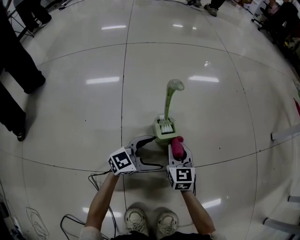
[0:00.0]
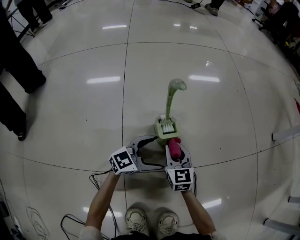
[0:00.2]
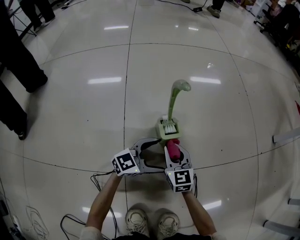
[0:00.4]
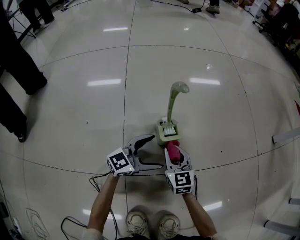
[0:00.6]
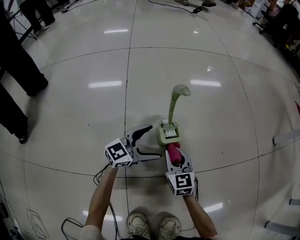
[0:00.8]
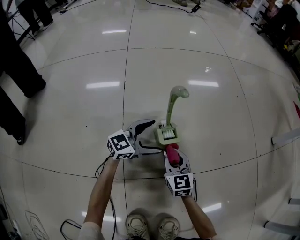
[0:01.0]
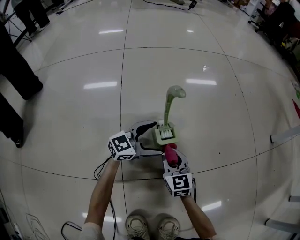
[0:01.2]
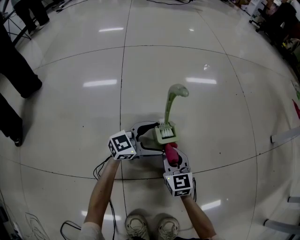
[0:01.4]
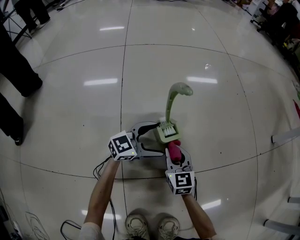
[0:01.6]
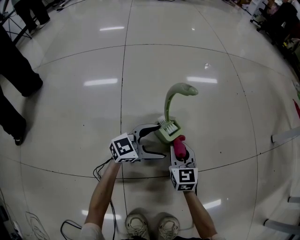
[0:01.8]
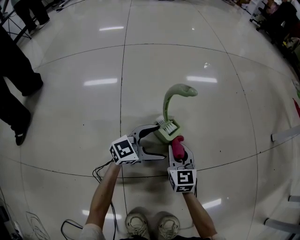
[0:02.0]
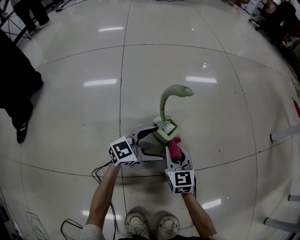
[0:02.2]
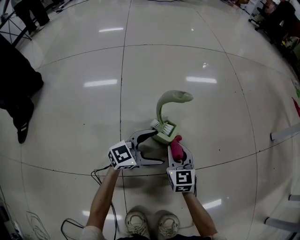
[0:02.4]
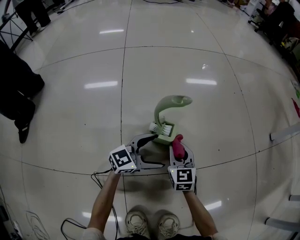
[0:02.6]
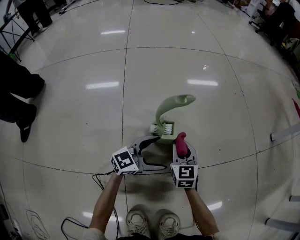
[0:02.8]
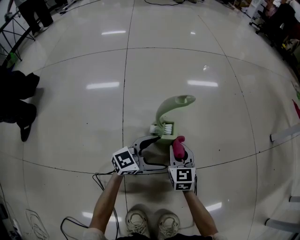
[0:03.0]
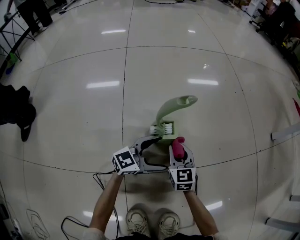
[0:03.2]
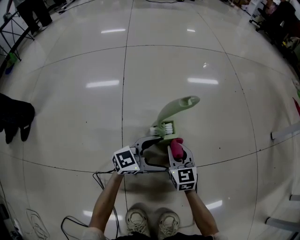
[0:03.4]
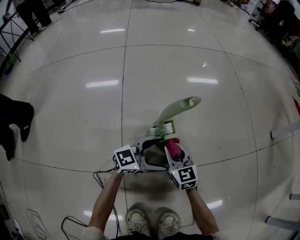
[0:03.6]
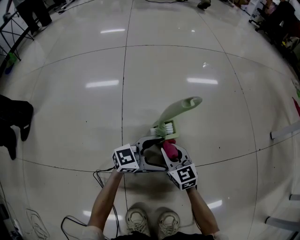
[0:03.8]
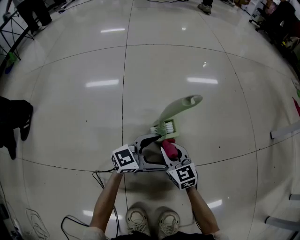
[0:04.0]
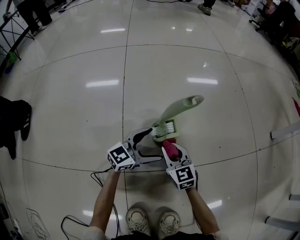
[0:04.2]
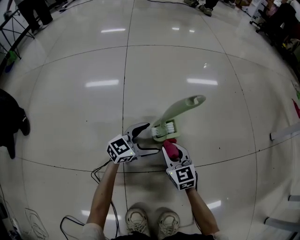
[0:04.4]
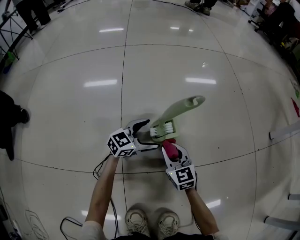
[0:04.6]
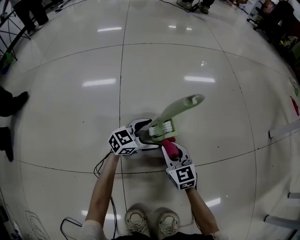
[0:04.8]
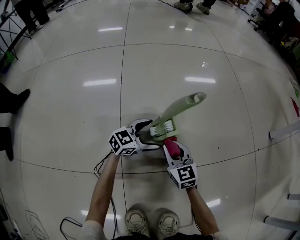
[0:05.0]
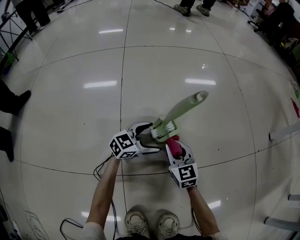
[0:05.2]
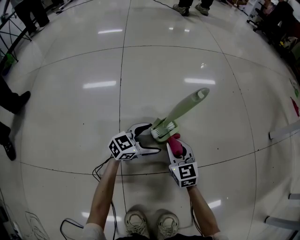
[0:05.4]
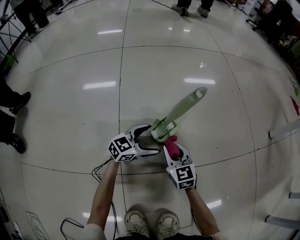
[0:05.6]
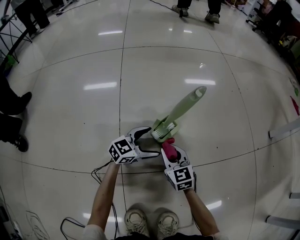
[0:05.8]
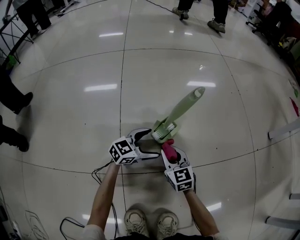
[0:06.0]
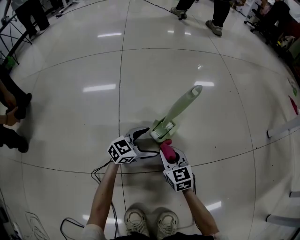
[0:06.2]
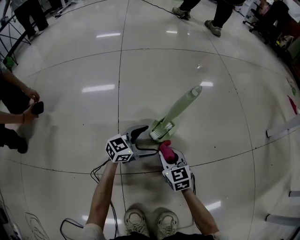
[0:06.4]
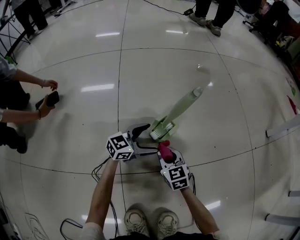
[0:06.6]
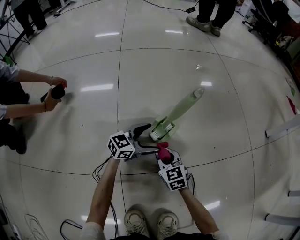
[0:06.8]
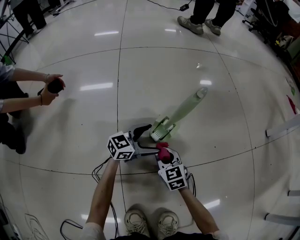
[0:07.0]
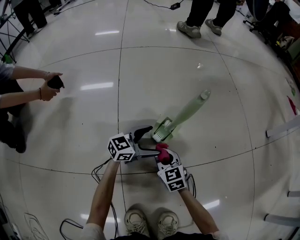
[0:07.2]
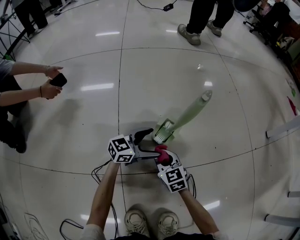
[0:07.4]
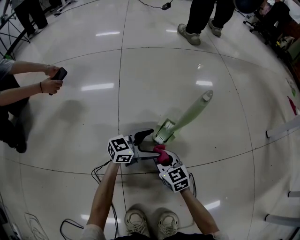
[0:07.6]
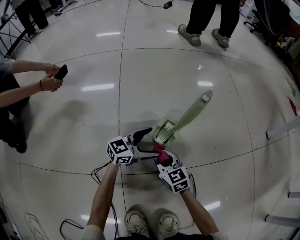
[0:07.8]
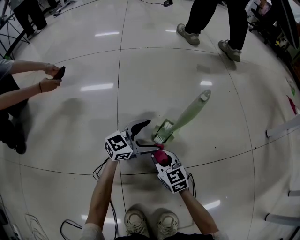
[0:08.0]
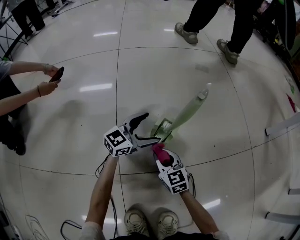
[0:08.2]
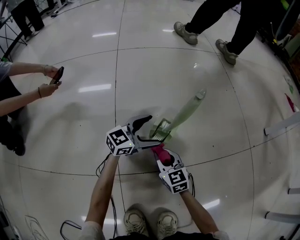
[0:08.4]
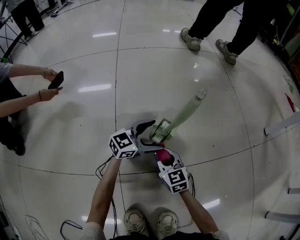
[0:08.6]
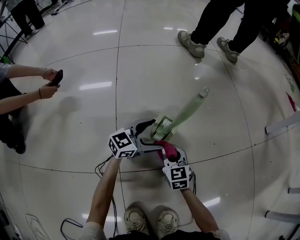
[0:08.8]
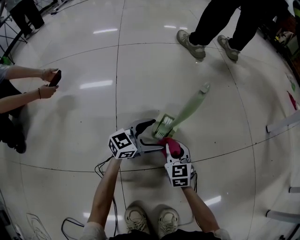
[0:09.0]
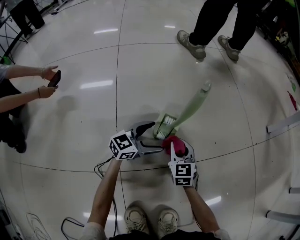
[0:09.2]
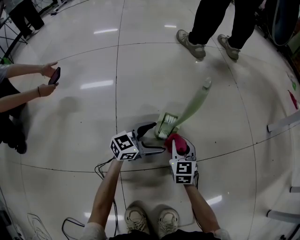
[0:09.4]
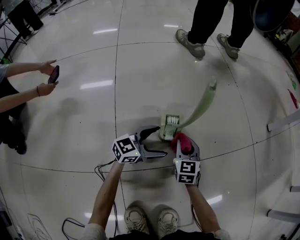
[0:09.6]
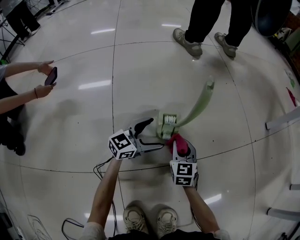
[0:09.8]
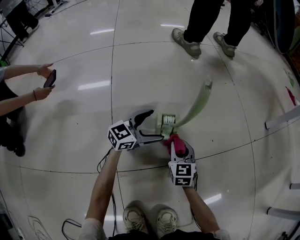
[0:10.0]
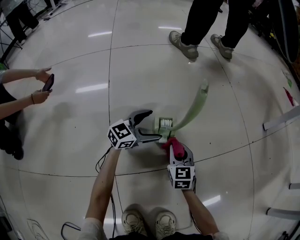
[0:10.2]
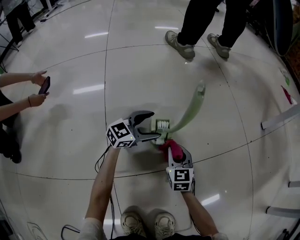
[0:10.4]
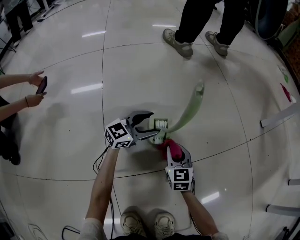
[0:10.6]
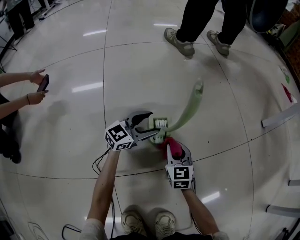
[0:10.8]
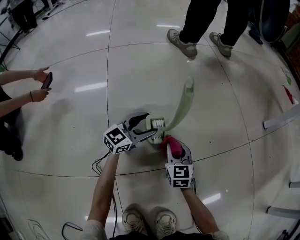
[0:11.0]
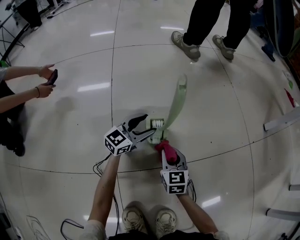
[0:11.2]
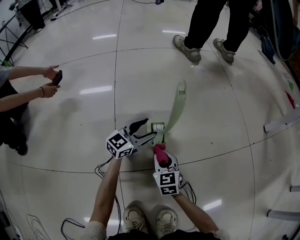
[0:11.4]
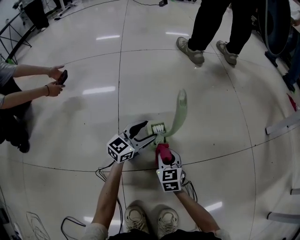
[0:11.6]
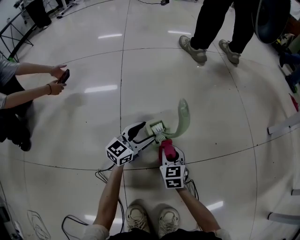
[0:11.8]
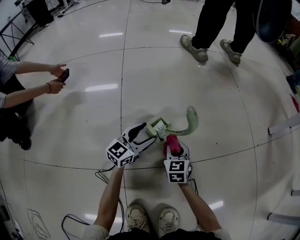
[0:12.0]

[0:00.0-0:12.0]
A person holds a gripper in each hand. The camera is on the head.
0:00.0 to 0:01.6: The left gripper moves forward, approximately 5 cm.
0:01.6 to 0:03.0: The left gripper is displaced backward by roughly 5 cm.
0:03.0 to 0:04.4: The left gripper is displaced to the left by some 5 cm.
0:04.4 to 0:07.6: The grippers move only a little.
0:07.6 to 0:09.0: The right gripper travels to the right and forward by some 10 cm, and changes its angle by about 20 degrees.
0:09.0 to 0:10.4: The right gripper changes place by some 5 cm; the left gripper shifts about 5 cm forward.
0:10.4 to 0:12.0: The right gripper moves to the left, roughly 5 cm, and reaches roughly 10 cm backward, then returns. Meanwhile the left gripper travels backward and to the left by roughly 10 cm, and swivels some 30 degrees.

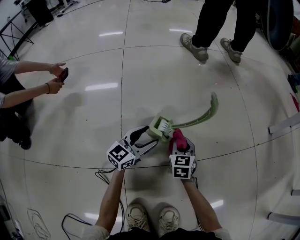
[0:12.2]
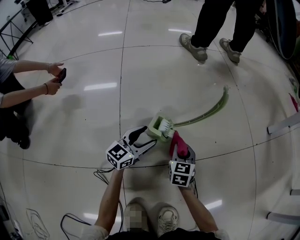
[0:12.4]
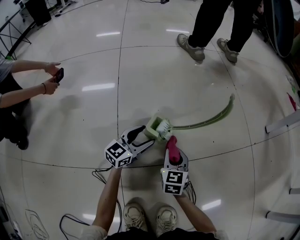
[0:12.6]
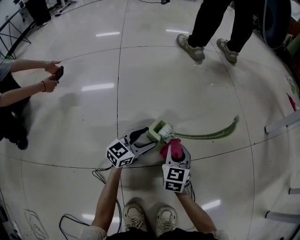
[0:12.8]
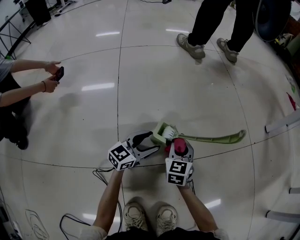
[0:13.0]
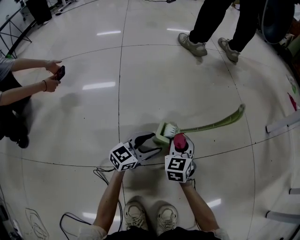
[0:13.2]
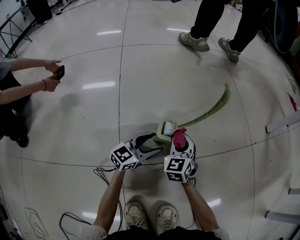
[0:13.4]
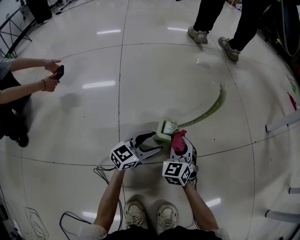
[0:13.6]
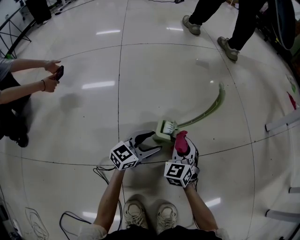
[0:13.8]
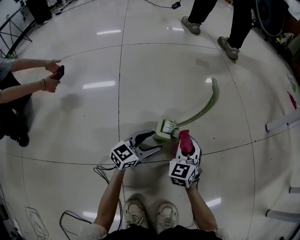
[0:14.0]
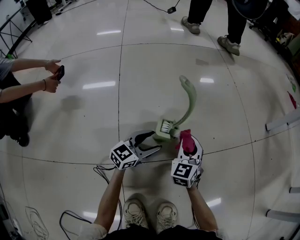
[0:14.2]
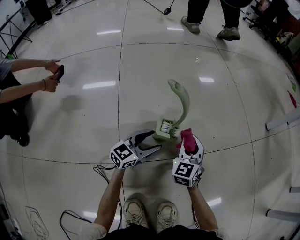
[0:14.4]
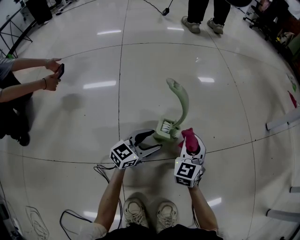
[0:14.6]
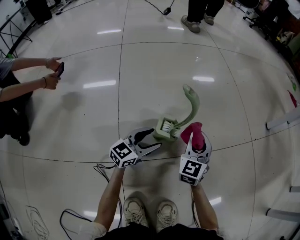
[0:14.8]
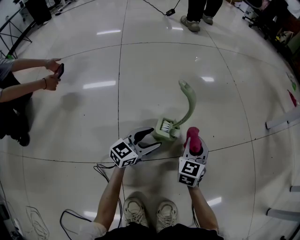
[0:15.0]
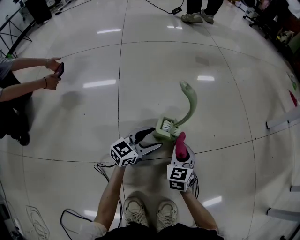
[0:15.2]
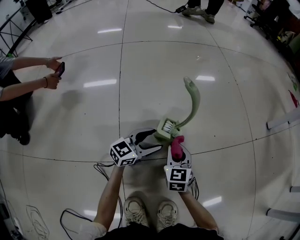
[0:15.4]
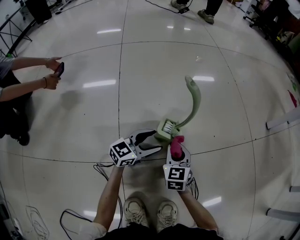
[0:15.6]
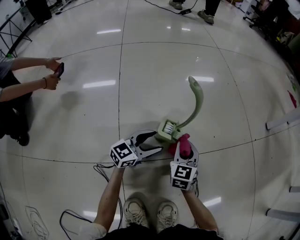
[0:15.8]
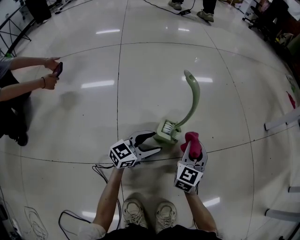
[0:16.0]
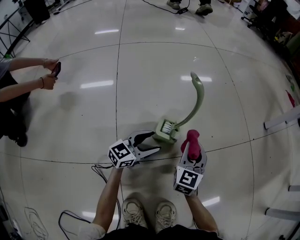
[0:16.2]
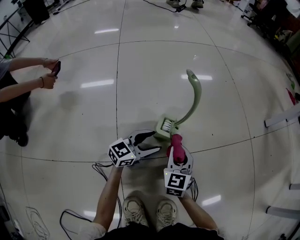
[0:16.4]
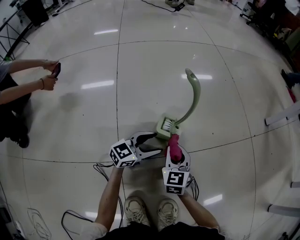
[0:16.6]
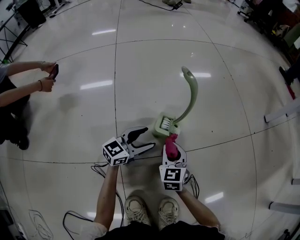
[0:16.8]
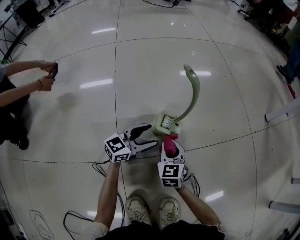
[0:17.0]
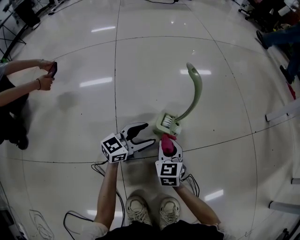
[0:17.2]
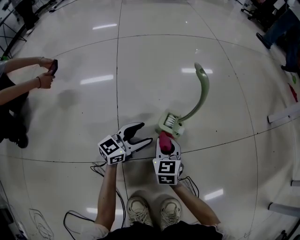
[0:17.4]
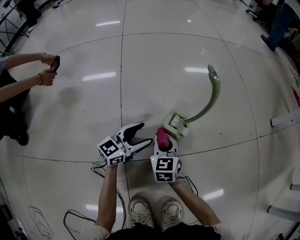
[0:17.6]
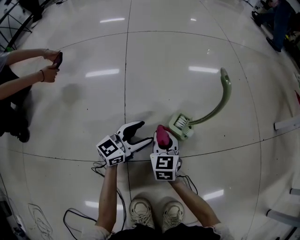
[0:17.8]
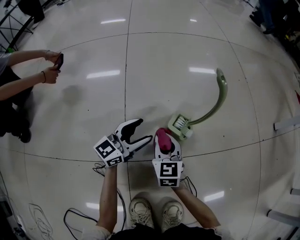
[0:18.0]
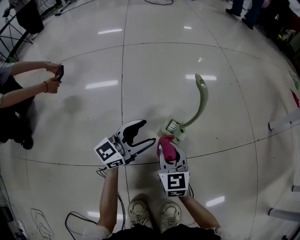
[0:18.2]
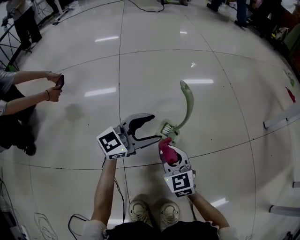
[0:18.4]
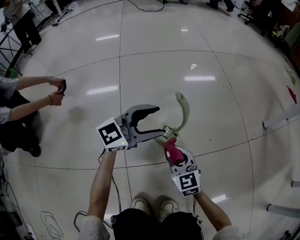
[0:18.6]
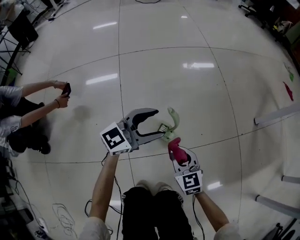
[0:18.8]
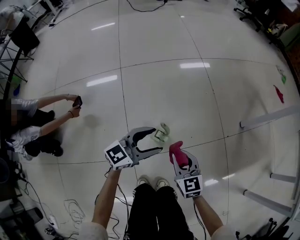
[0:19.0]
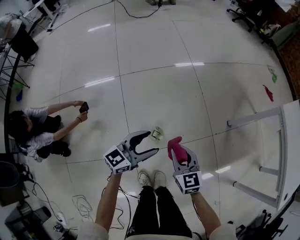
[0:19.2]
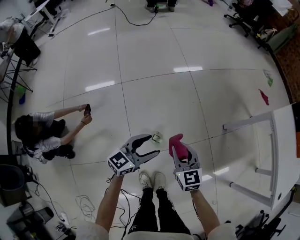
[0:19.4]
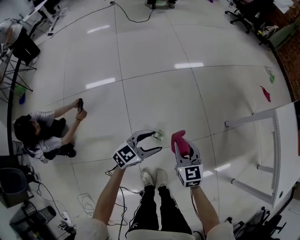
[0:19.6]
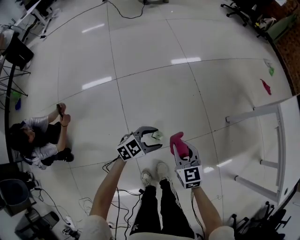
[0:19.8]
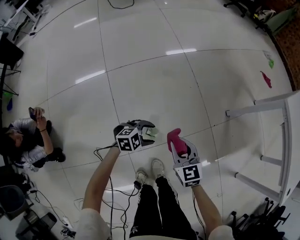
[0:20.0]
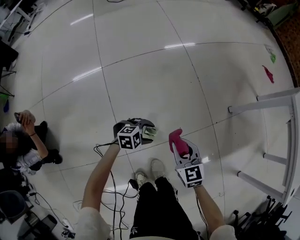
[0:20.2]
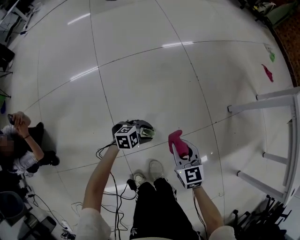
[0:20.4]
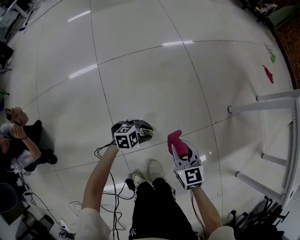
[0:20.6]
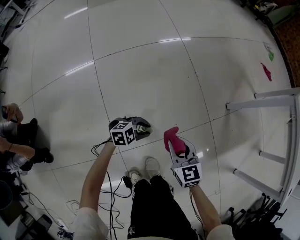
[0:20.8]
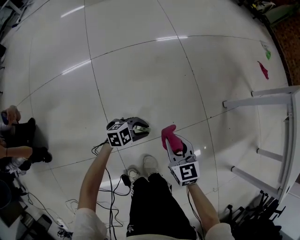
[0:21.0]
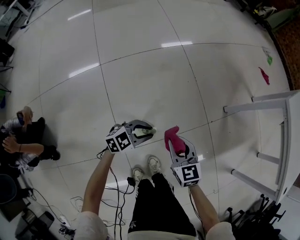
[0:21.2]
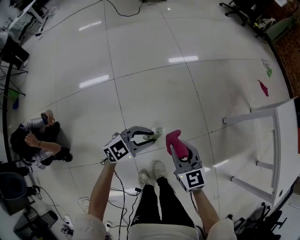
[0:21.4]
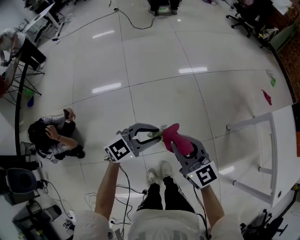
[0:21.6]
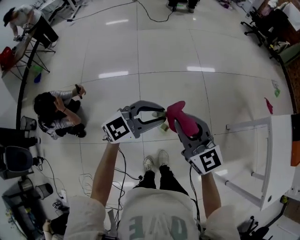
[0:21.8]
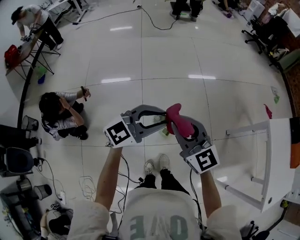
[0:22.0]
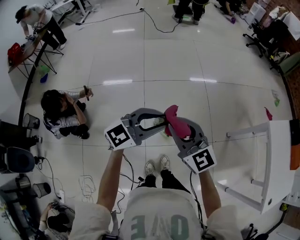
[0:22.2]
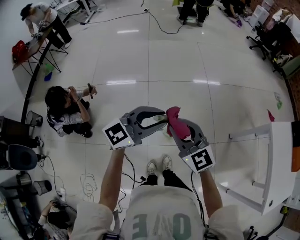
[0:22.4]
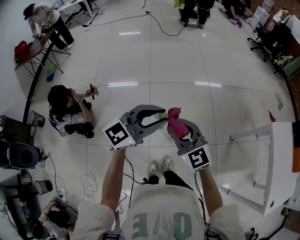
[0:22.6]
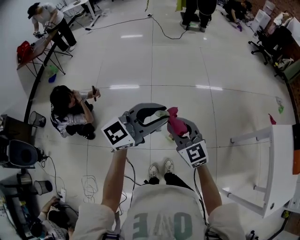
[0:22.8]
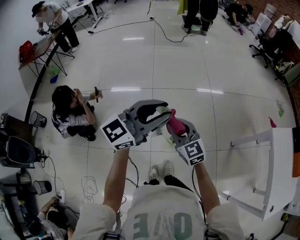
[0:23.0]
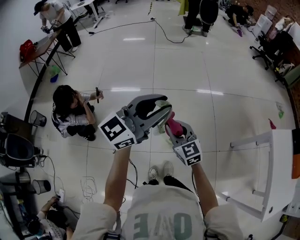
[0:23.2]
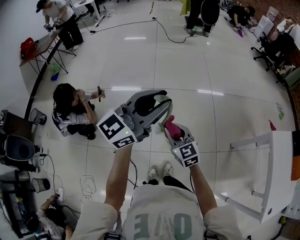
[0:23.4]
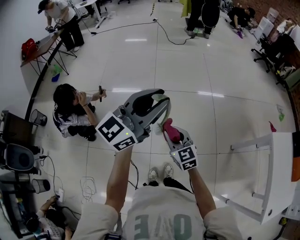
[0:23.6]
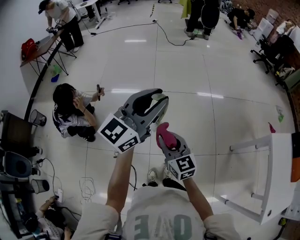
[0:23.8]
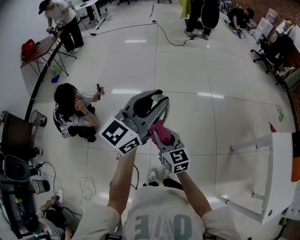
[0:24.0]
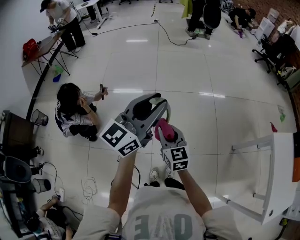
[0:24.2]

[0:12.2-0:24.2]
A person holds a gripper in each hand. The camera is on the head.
0:12.2 to 0:13.8: The right gripper goes roughly 5 cm upward, and turns by about 20 degrees. The left gripper ends up about 5 cm from where it was.
0:16.6 to 0:18.2: The right gripper moves to the left and upward, some 10 cm. Meanwhile the left gripper heads upward and to the left, covering some 15 cm, and rotates some 20 degrees.
0:18.2 to 0:19.8: The two grippers go about 50 cm upward. The left gripper angles its fingers downward, by some 40 degrees.
0:19.8 to 0:21.2: The two grippers go approximately 10 cm downward. The left gripper closes its fingers.
0:21.2 to 0:22.6: Both grippers travel together upward, roughly 50 cm. The right gripper turns by roughly 50 degrees. Meanwhile the left gripper turns by some 40 degrees.
0:22.6 to 0:24.2: The right gripper travels downward and to the left by approximately 10 cm, and swivels about 30 degrees, while the left gripper travels upward and to the left by some 10 cm, and swivels roughly 30 degrees.
